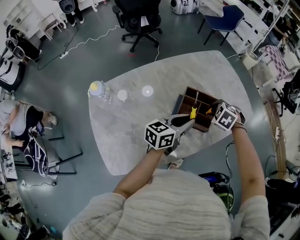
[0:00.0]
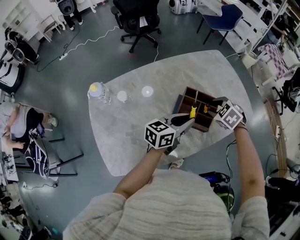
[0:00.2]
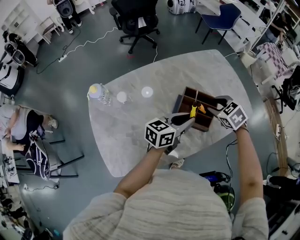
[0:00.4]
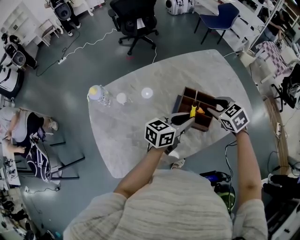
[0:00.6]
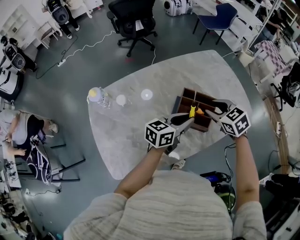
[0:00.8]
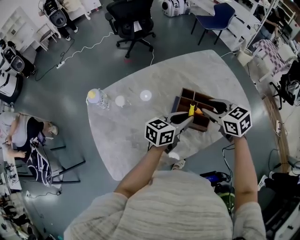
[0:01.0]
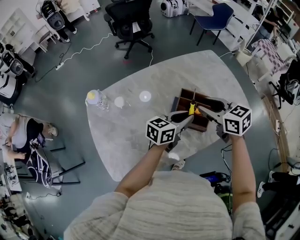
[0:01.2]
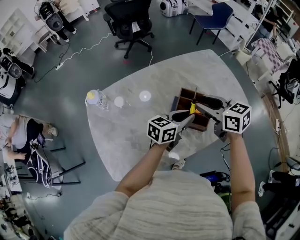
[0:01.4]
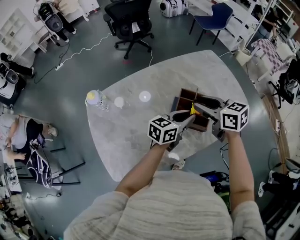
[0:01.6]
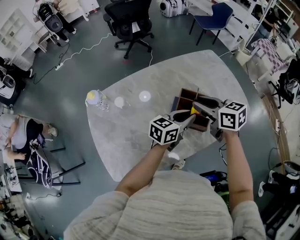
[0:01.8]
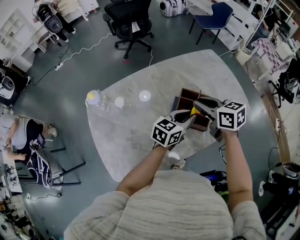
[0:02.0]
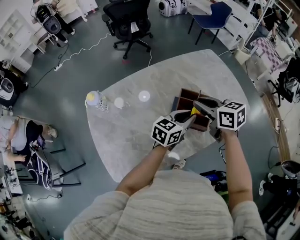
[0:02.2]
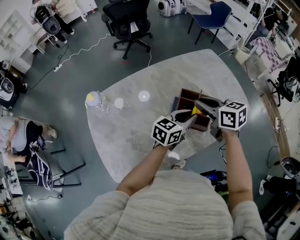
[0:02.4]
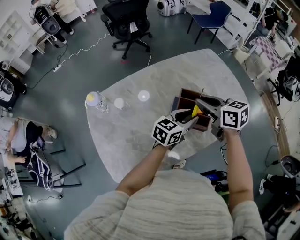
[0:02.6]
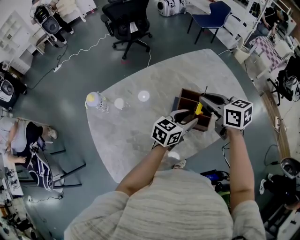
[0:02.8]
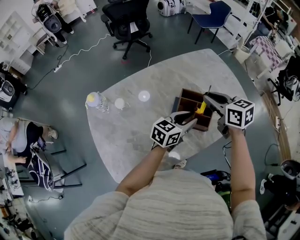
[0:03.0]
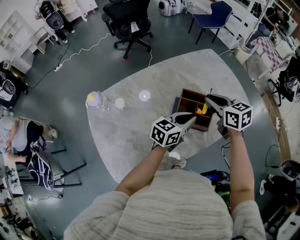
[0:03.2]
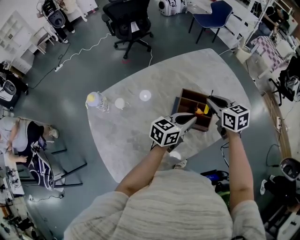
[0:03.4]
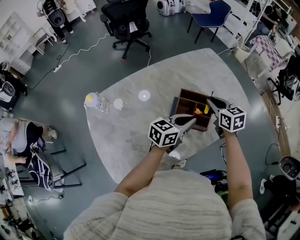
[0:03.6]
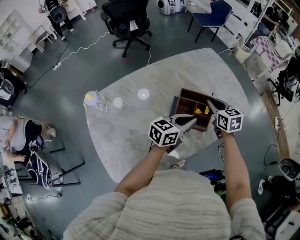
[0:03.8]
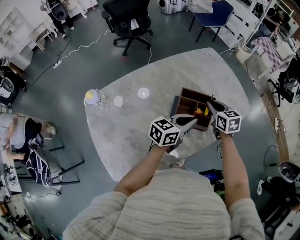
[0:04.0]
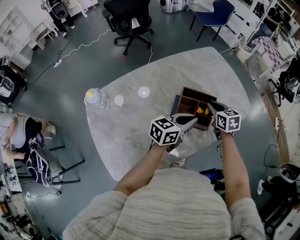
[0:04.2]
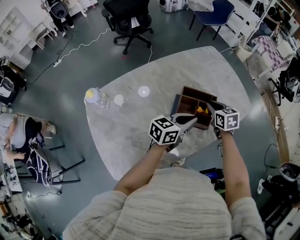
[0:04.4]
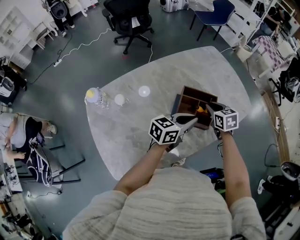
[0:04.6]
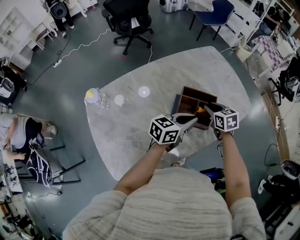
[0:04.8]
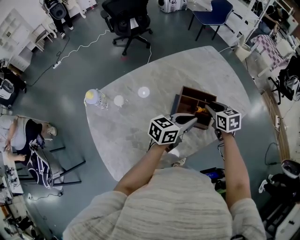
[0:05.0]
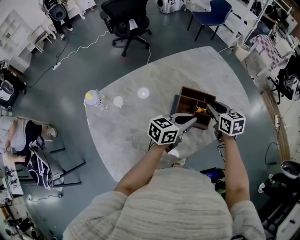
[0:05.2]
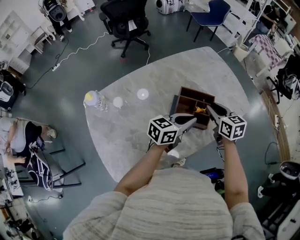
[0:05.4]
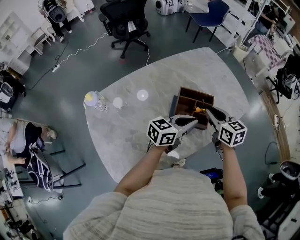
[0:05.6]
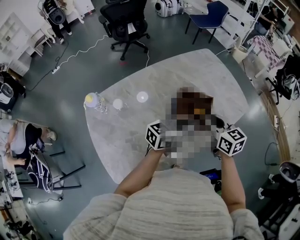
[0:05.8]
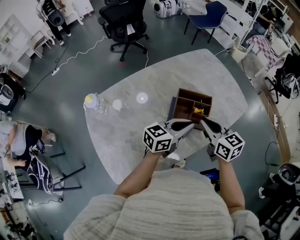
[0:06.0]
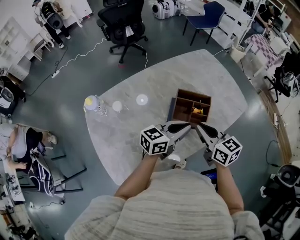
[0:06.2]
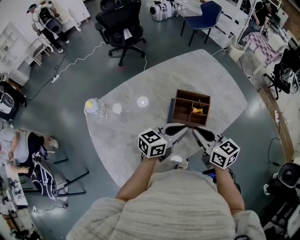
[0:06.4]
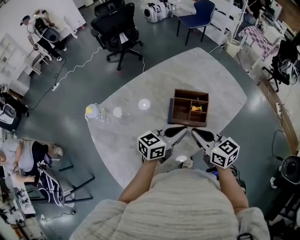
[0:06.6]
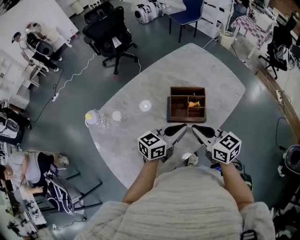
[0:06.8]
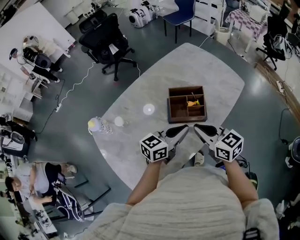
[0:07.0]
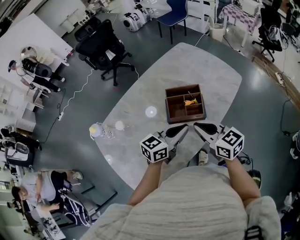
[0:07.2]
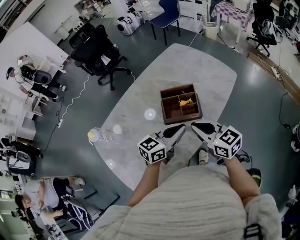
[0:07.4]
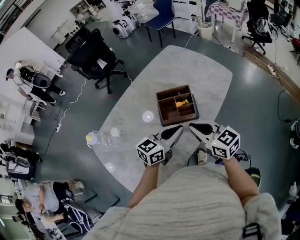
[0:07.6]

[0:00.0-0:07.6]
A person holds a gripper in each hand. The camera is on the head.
0:00.0 to 0:01.6: The right gripper moves upward and to the left, some 15 cm, and angles its fingers upward, by roughly 50 degrees.
0:01.6 to 0:03.0: The right gripper closes its fingers.
0:03.0 to 0:04.6: The left gripper closes its fingers, while the right gripper travels downward by some 15 cm, and rotates some 20 degrees.
0:04.6 to 0:06.0: The right gripper is displaced backward and upward by some 15 cm, and changes its angle by roughly 20 degrees.
0:06.0 to 0:07.6: The right gripper goes approximately 10 cm backward.

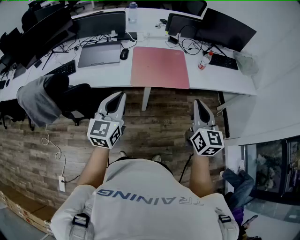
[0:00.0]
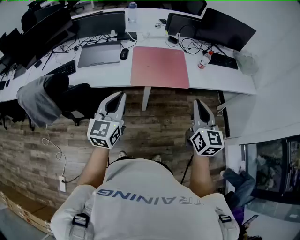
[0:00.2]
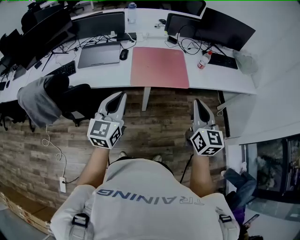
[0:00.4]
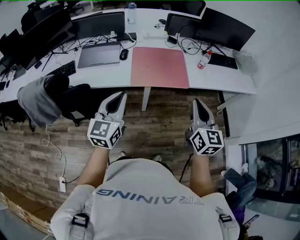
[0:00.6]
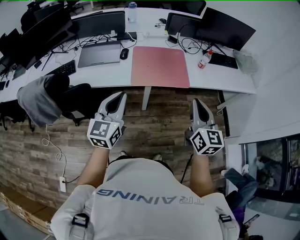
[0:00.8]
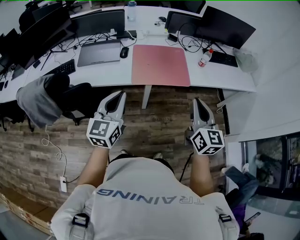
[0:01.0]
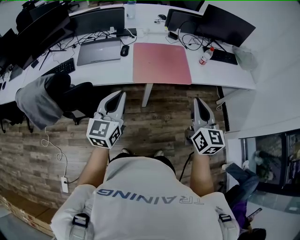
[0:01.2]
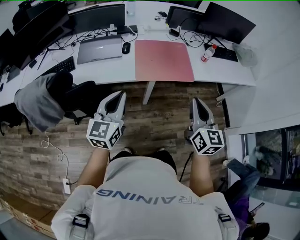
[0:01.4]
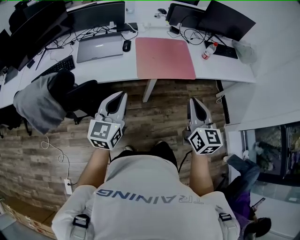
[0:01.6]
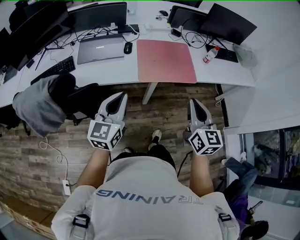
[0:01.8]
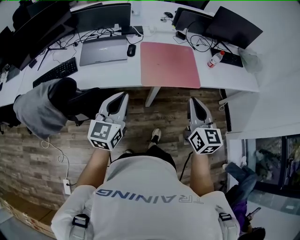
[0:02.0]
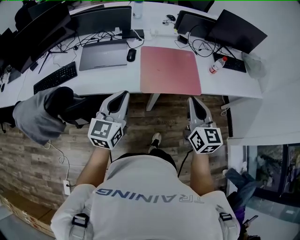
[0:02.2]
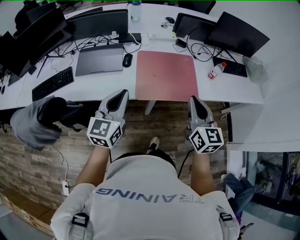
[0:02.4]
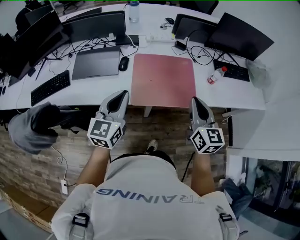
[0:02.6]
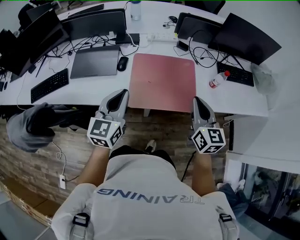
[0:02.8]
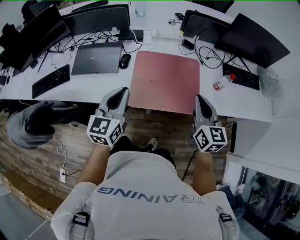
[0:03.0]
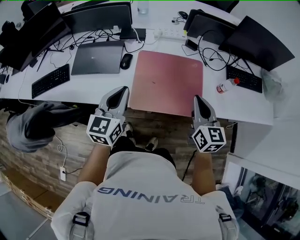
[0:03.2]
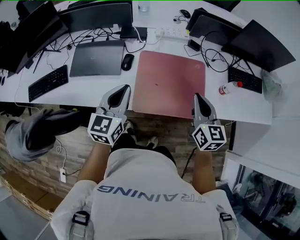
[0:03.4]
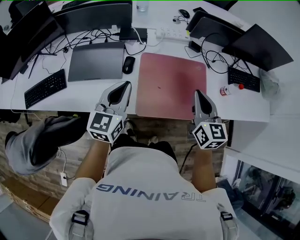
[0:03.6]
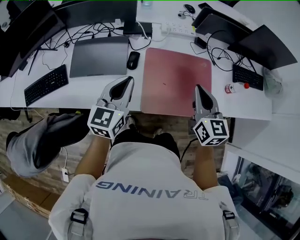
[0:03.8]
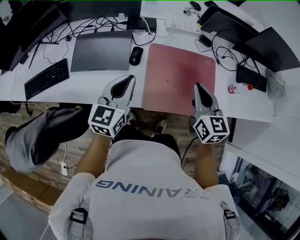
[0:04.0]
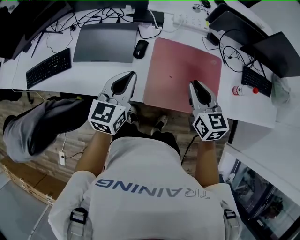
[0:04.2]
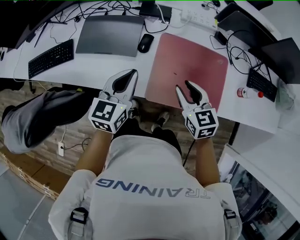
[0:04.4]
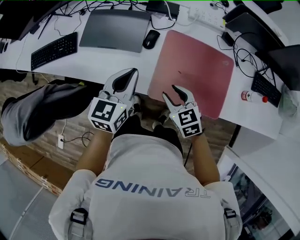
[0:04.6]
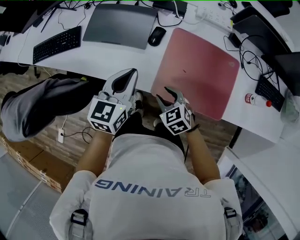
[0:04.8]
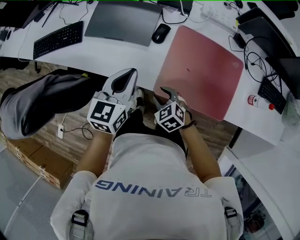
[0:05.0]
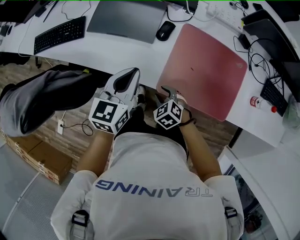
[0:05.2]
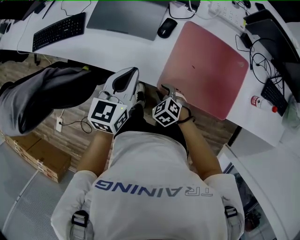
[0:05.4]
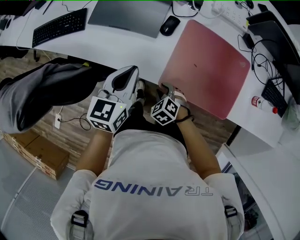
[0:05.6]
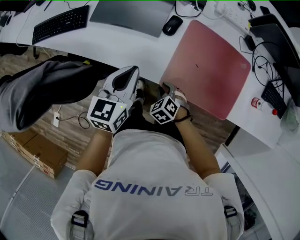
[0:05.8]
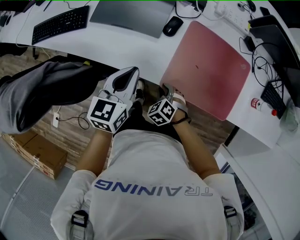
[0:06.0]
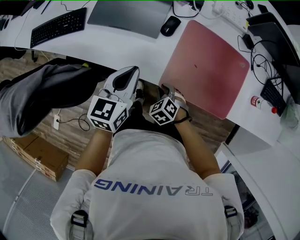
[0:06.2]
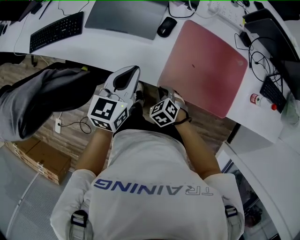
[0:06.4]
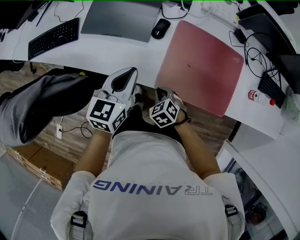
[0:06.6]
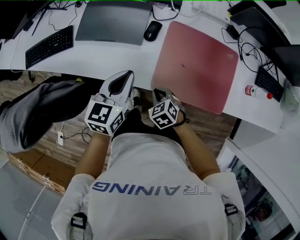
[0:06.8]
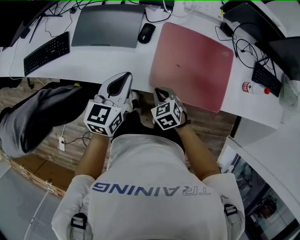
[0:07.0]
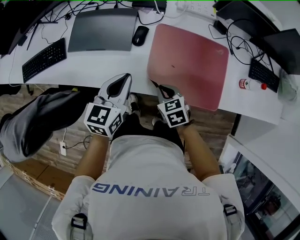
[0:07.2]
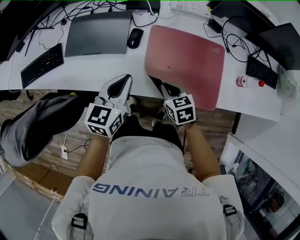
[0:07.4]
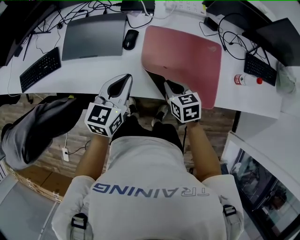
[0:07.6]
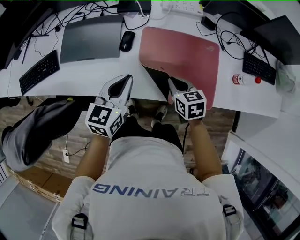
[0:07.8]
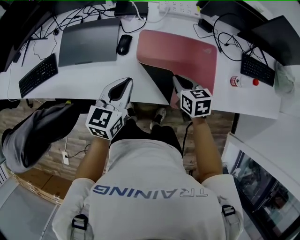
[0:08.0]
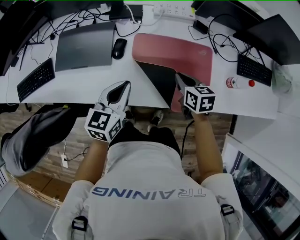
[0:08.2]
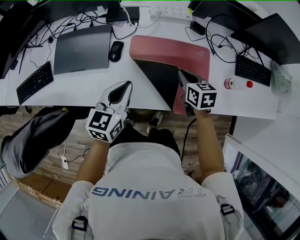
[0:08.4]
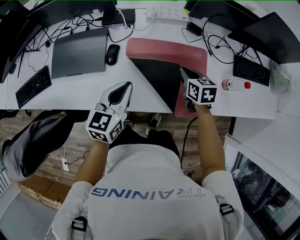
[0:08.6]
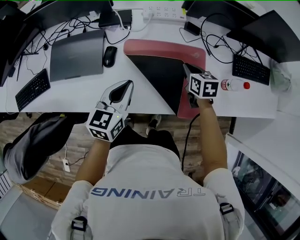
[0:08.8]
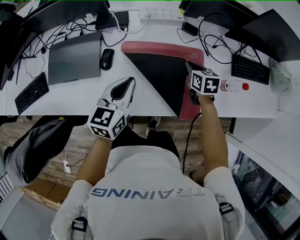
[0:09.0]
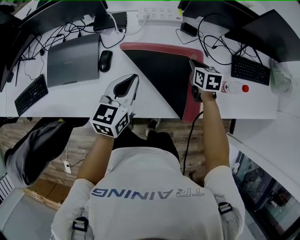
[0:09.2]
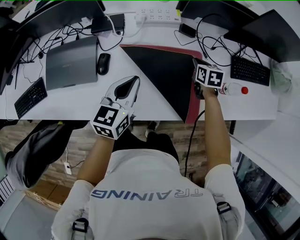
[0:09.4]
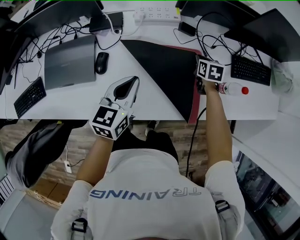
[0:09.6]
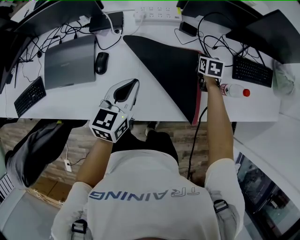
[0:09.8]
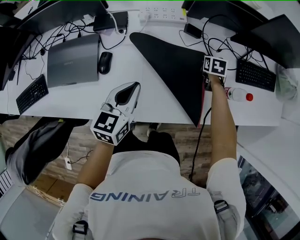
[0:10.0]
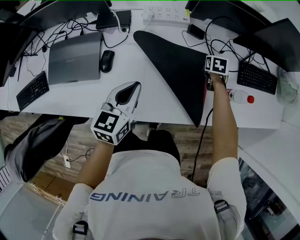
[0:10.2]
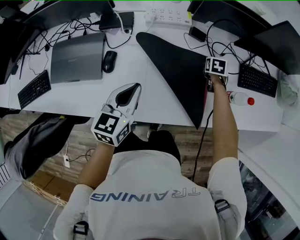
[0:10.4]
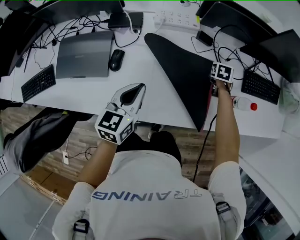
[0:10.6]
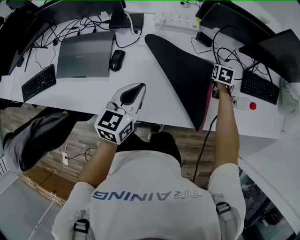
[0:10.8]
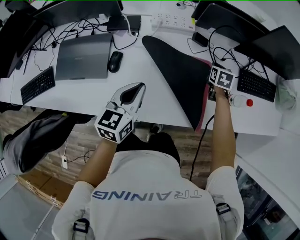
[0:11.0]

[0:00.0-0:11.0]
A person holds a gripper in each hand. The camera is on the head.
0:00.0 to 0:01.6: The grippers both shift to the left by roughly 10 cm.
0:01.6 to 0:03.2: The grippers both shift forward by approximately 30 cm.
0:03.2 to 0:04.8: The right gripper ends up roughly 35 cm from where it was, angles its fingers downward, by about 40 degrees, and opens. The left gripper shifts by some 15 cm.
0:04.8 to 0:06.2: The right gripper heads downward, covering approximately 10 cm, rotates some 20 degrees, and closes its fingers. The left gripper changes place by roughly 5 cm.
0:06.2 to 0:07.8: The right gripper shifts about 25 cm to the right, upward and forward, and twists approximately 50 degrees clockwise, seen from behind, while the left gripper heads to the right, covering approximately 10 cm.
0:07.8 to 0:09.4: The right gripper is displaced to the right and forward by some 30 cm, and swivels approximately 20 degrees. The left gripper goes some 15 cm to the right and forward.
0:09.4 to 0:11.0: The right gripper goes downward and returns, roughly 5 cm each way.

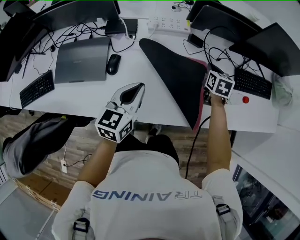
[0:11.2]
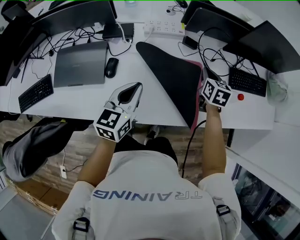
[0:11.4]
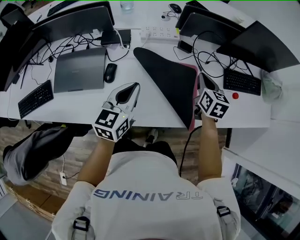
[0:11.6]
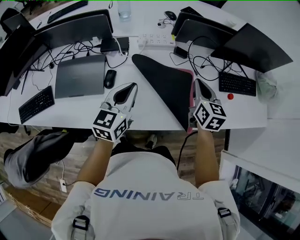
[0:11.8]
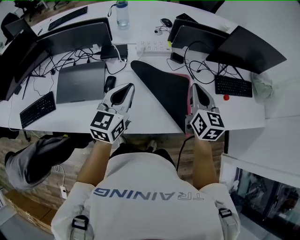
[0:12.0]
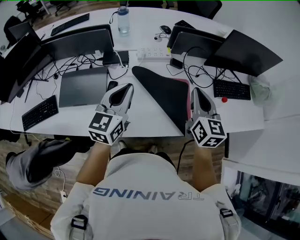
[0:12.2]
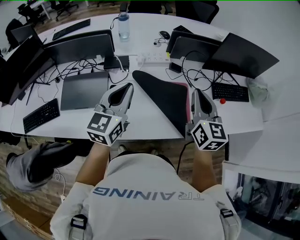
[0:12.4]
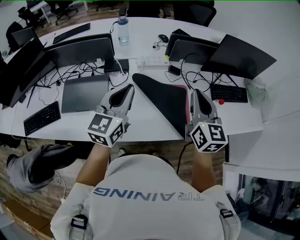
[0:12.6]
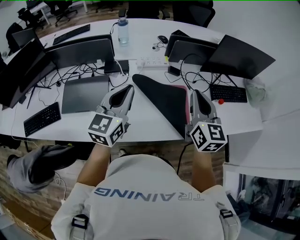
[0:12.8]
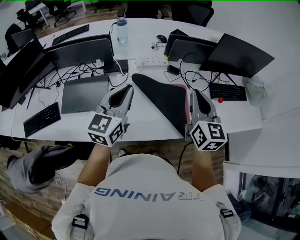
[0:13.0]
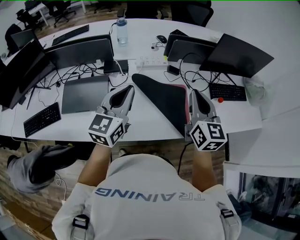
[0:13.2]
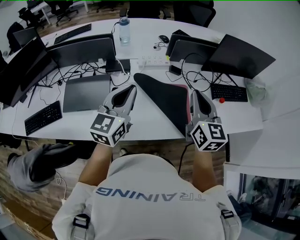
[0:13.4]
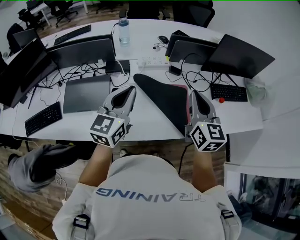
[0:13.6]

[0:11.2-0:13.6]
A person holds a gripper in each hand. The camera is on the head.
0:11.2 to 0:12.4: The right gripper moves upward and backward, approximately 35 cm, and points its fingers approximately 40 degrees further upward, while the left gripper is displaced upward by approximately 15 cm.
0:12.4 to 0:13.6: There are only small adjustments of the grippers.

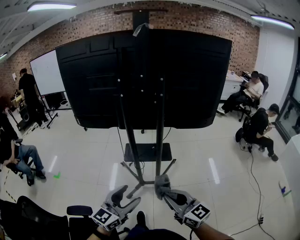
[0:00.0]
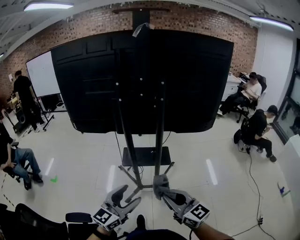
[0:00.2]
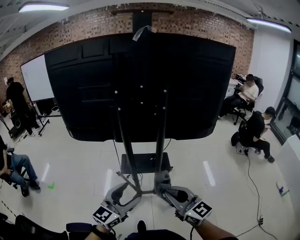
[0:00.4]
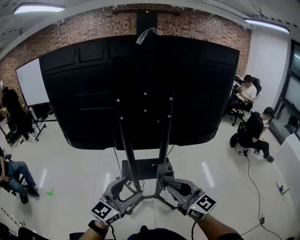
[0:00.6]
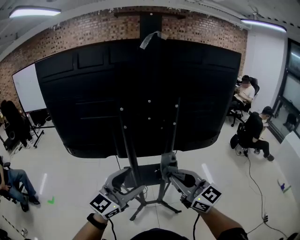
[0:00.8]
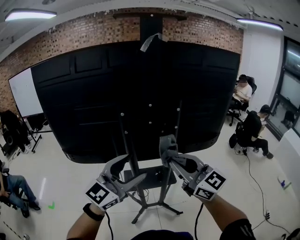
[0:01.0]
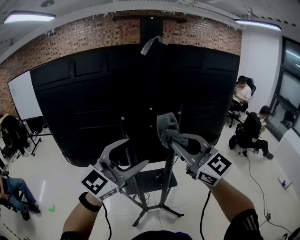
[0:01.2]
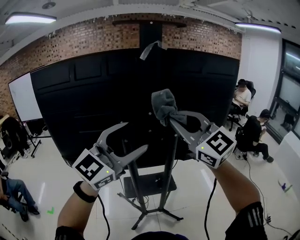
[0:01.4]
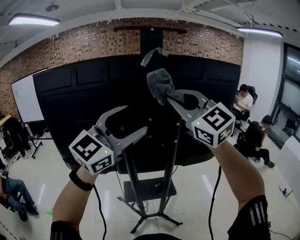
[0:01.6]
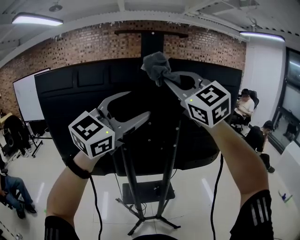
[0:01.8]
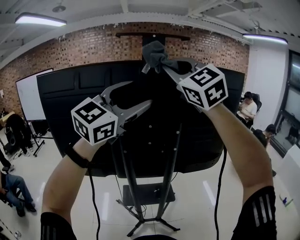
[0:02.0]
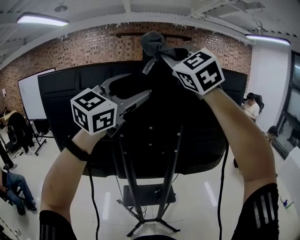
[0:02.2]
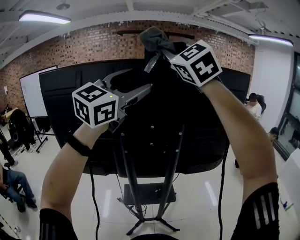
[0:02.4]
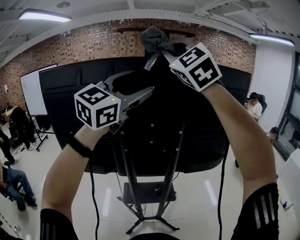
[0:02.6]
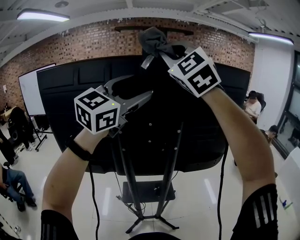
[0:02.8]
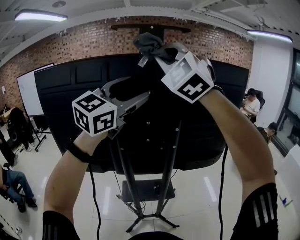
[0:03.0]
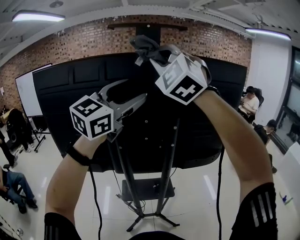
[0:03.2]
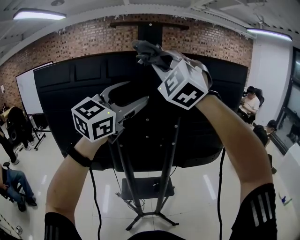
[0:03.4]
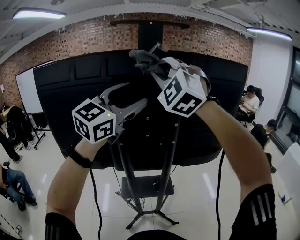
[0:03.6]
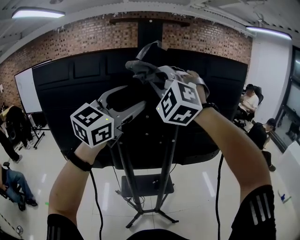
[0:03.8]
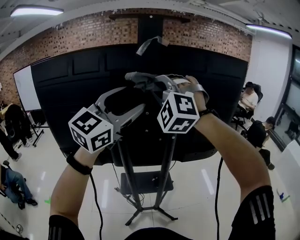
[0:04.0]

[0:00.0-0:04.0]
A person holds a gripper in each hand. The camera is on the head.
0:00.0 to 0:01.4: The right gripper is displaced upward and forward by some 50 cm, and changes its angle by roughly 40 degrees, while the left gripper travels forward and upward by about 40 cm, and changes its angle by about 30 degrees.
0:01.4 to 0:02.6: Both grippers travel together upward and forward, about 20 cm. The right gripper changes its angle by roughly 30 degrees.
0:02.6 to 0:04.0: The left gripper shifts approximately 10 cm downward. Meanwhile the right gripper heads downward, covering roughly 20 cm, and turns by about 30 degrees.
